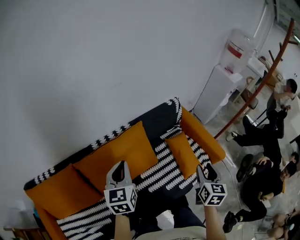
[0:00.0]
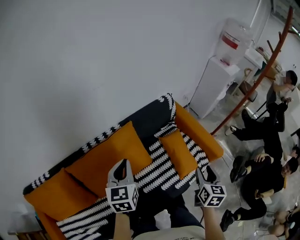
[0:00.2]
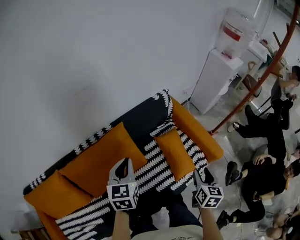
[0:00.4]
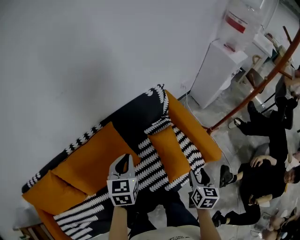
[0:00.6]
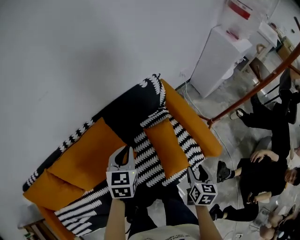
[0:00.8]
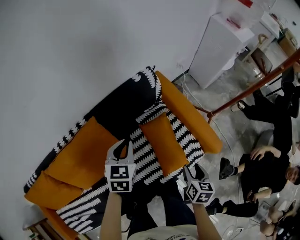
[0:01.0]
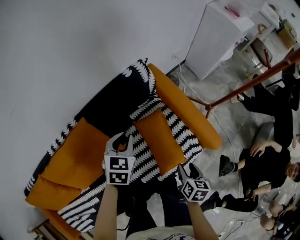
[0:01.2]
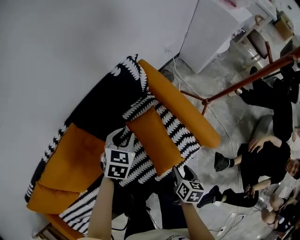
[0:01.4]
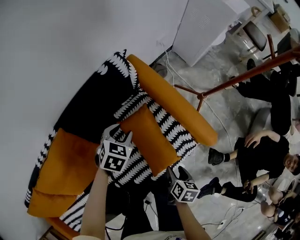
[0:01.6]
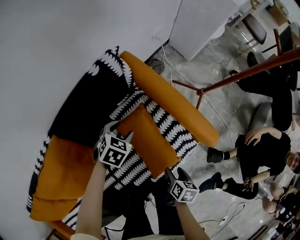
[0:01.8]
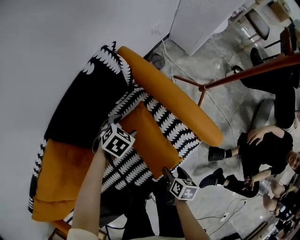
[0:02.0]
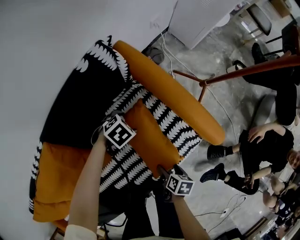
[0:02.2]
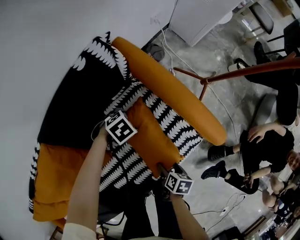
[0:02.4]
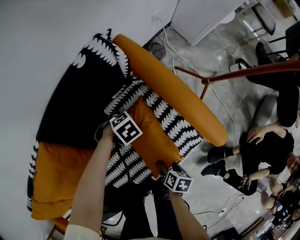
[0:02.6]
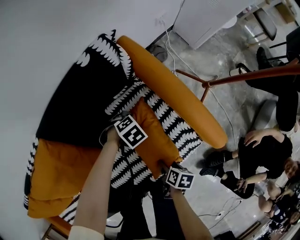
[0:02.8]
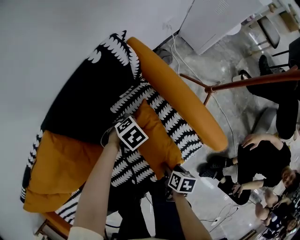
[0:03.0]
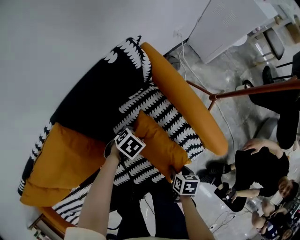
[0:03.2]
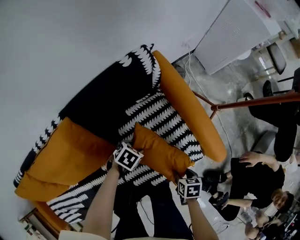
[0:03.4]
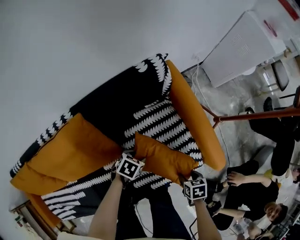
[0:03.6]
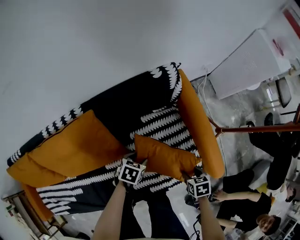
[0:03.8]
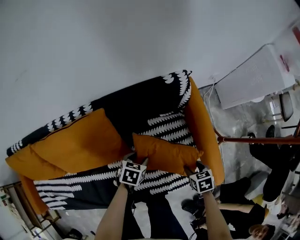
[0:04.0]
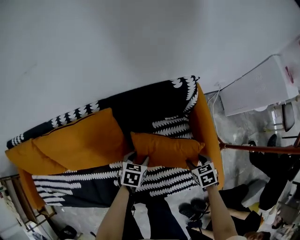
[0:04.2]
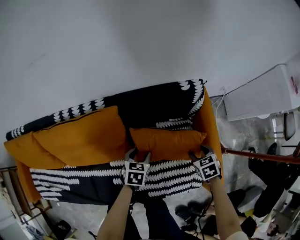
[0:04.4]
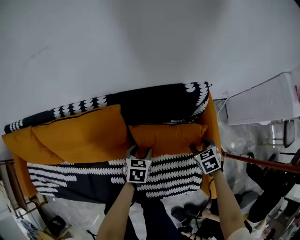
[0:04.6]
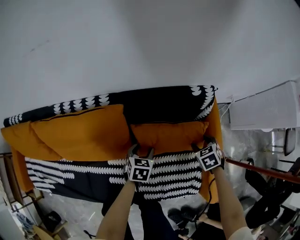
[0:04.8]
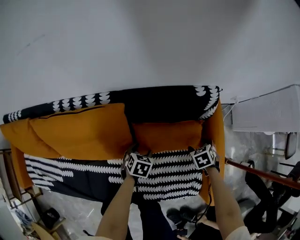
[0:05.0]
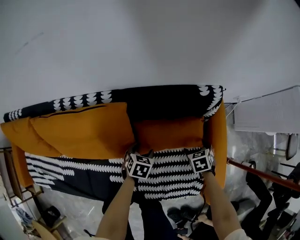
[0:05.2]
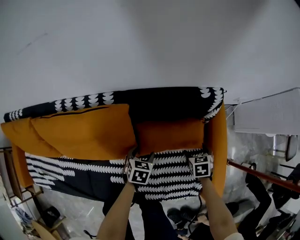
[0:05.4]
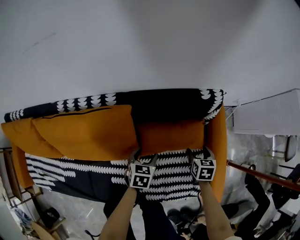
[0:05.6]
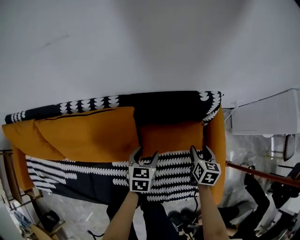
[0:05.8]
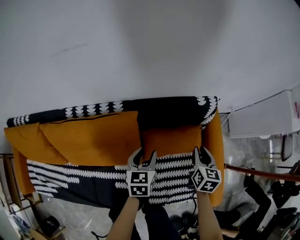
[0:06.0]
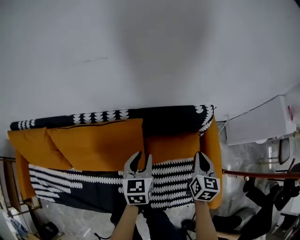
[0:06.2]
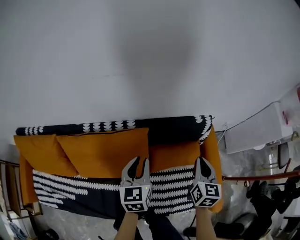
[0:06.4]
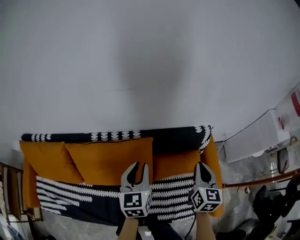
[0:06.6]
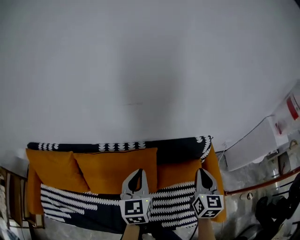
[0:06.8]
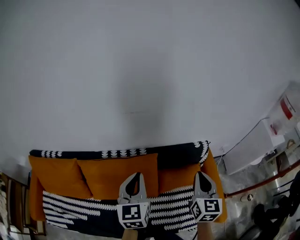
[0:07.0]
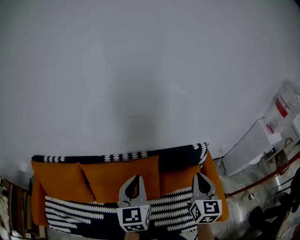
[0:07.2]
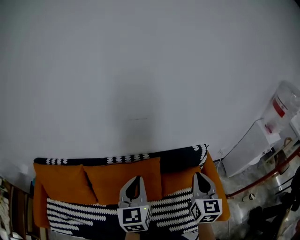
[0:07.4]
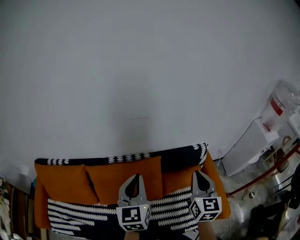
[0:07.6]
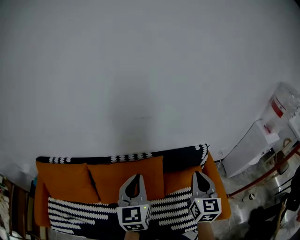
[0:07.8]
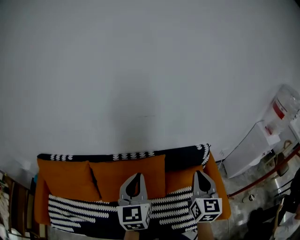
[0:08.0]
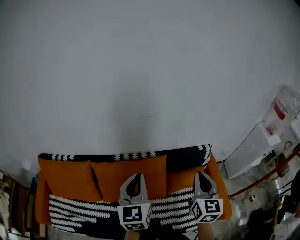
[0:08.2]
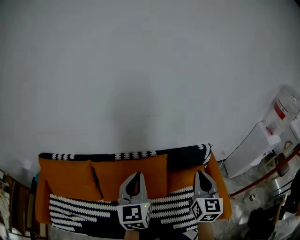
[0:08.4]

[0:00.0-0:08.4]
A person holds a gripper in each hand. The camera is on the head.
0:00.0 to 0:01.4: The right gripper moves downward and to the right, roughly 35 cm, and turns by approximately 40 degrees; the left gripper moves to the right, forward and downward, roughly 50 cm, and angles its fingers downward, by some 30 degrees.
0:01.4 to 0:02.8: The right gripper heads downward, covering some 15 cm, and swivels some 20 degrees, while the left gripper heads downward, covering approximately 25 cm, swivels approximately 50 degrees, and opens up.
0:02.8 to 0:04.2: The left gripper moves about 20 cm, and rolls counterclockwise, seen from behind, by approximately 60 degrees. The right gripper moves roughly 20 cm, and rotates around the line of its fingers by roughly 80 degrees, counterclockwise from behind.
0:04.2 to 0:05.6: The right gripper moves about 15 cm.
0:05.6 to 0:07.0: The grippers both shift upward by some 40 cm. The right gripper angles its fingers upward, by some 50 degrees, and closes up. The left gripper tilts its fingers approximately 40 degrees upward, and closes its fingers.
0:07.0 to 0:08.4: Both grippers travel together to the left, upward and backward, roughly 10 cm.

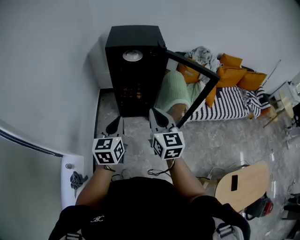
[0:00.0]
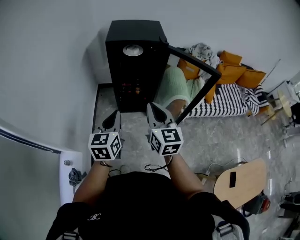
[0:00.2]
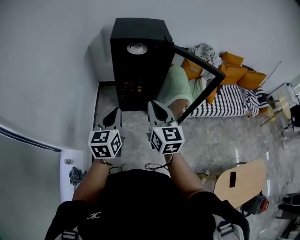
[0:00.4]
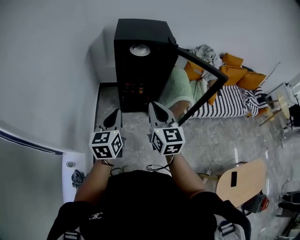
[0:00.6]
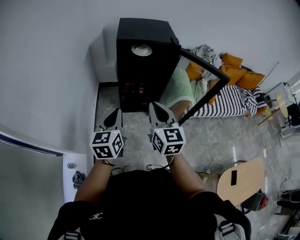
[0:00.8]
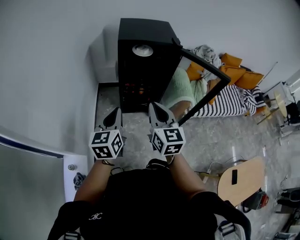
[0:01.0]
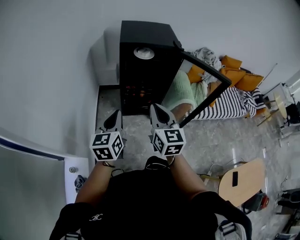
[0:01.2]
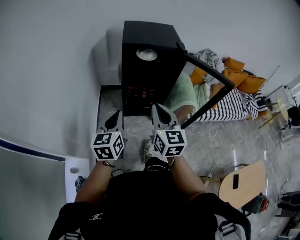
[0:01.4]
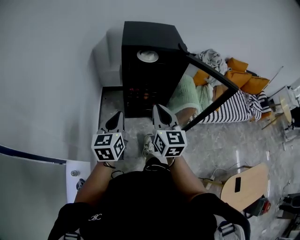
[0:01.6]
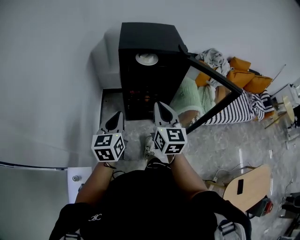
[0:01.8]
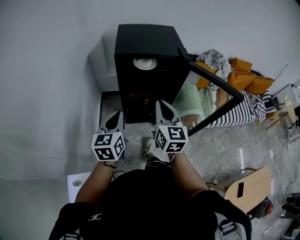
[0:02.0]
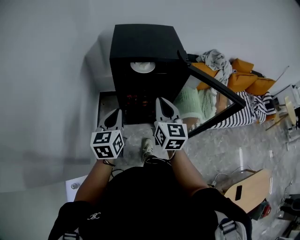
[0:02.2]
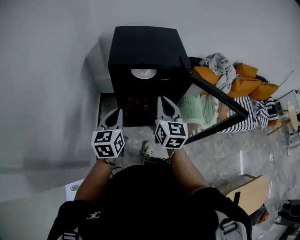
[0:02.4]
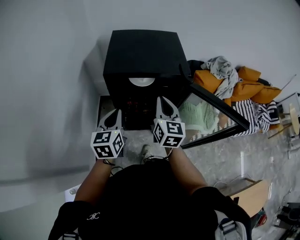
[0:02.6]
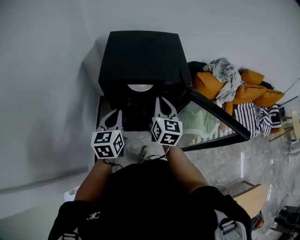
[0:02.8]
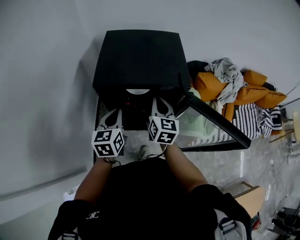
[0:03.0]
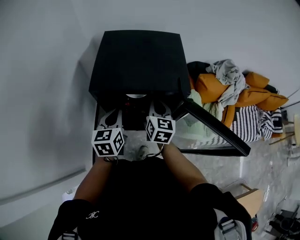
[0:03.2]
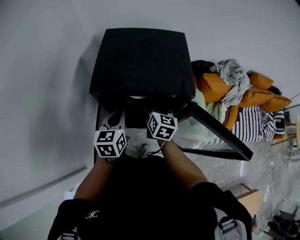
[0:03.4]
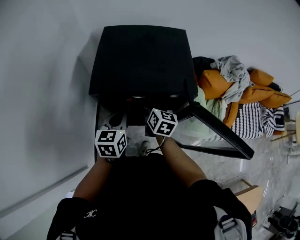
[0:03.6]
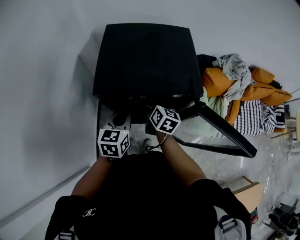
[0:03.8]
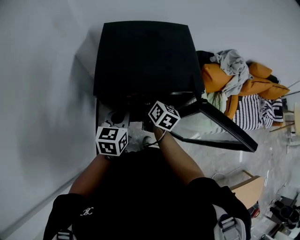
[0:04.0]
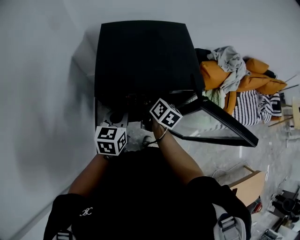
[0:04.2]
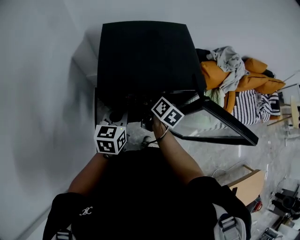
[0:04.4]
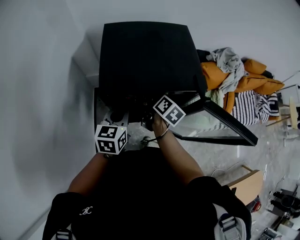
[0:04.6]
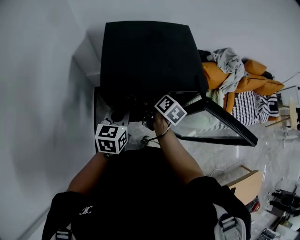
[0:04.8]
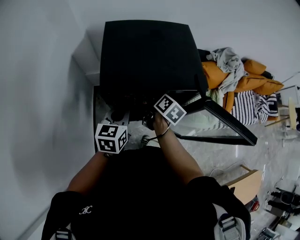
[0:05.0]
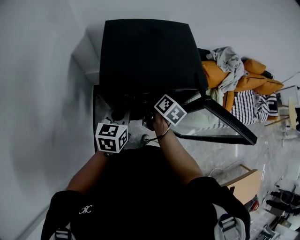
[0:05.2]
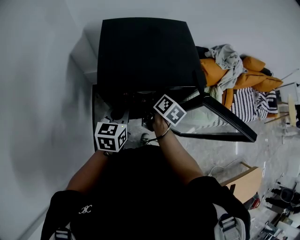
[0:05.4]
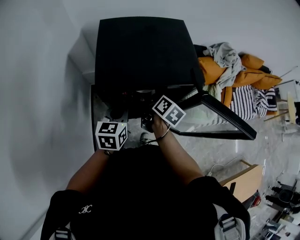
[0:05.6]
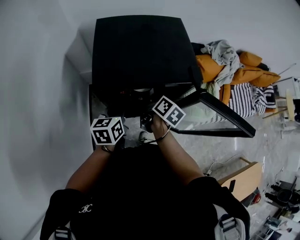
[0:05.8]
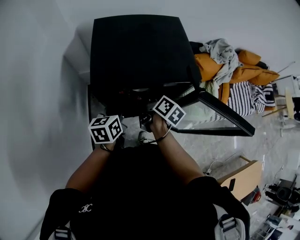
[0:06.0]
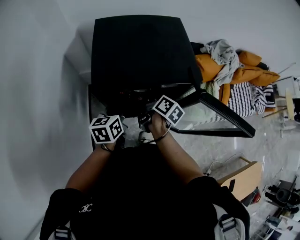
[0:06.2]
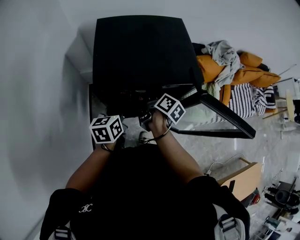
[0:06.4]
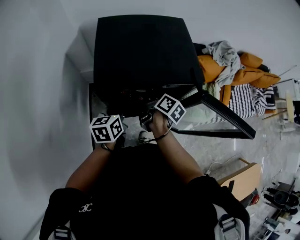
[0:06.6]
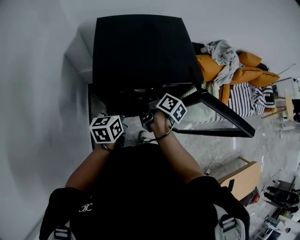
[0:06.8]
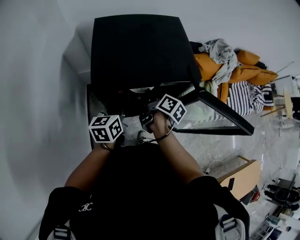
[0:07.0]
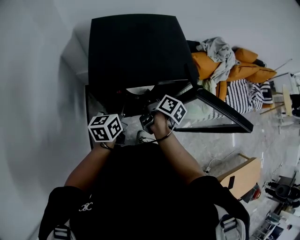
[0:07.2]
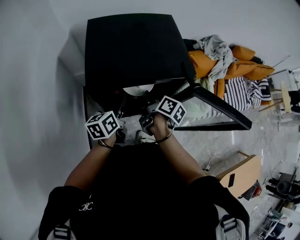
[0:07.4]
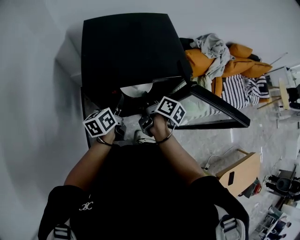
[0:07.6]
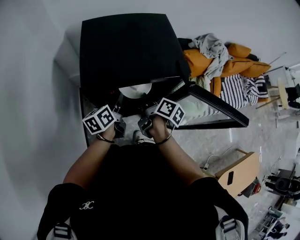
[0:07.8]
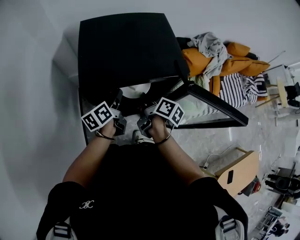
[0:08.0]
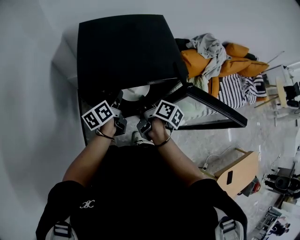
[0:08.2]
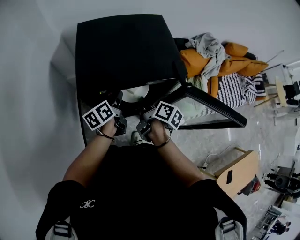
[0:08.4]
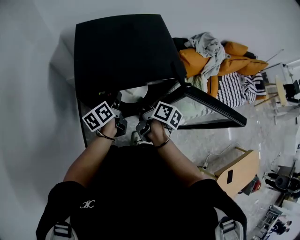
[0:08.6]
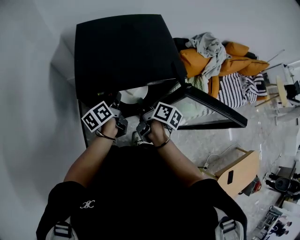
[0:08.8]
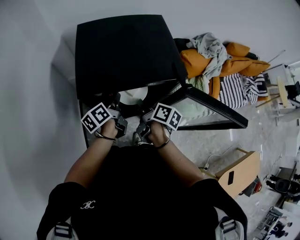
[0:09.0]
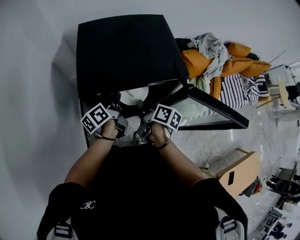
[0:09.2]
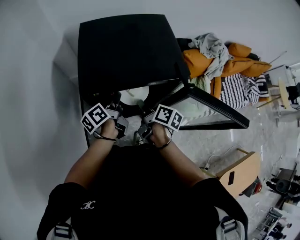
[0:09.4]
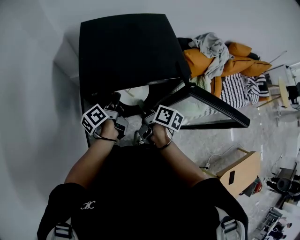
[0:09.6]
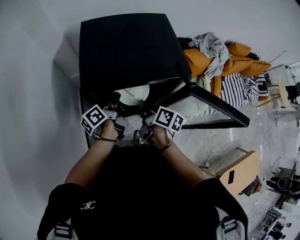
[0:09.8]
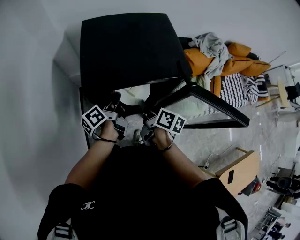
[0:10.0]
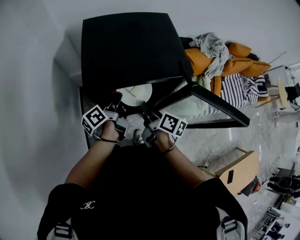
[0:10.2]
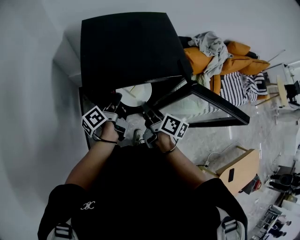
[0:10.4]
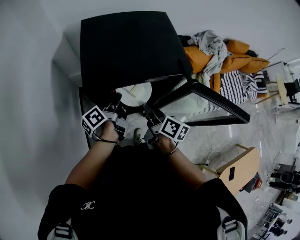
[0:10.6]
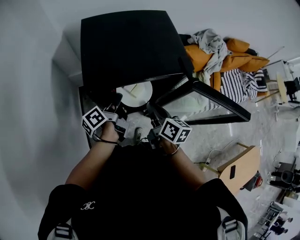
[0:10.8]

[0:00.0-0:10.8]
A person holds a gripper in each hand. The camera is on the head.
0:00.0 to 0:01.6: Both grippers travel together to the left and forward, approximately 15 cm.
0:01.6 to 0:03.0: The grippers both shift forward by approximately 35 cm.
0:03.0 to 0:04.6: The left gripper shifts by approximately 5 cm. The right gripper is displaced downward and forward by about 10 cm, rotates roughly 40 degrees, and opens.
0:04.6 to 0:06.2: The grippers move only a little.
0:06.2 to 0:07.8: The left gripper opens its fingers.
0:07.8 to 0:09.2: The left gripper closes.
0:09.2 to 0:10.8: The right gripper swivels about 20 degrees.

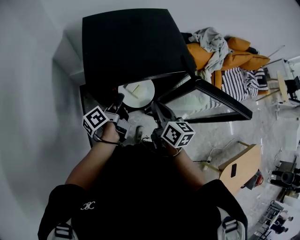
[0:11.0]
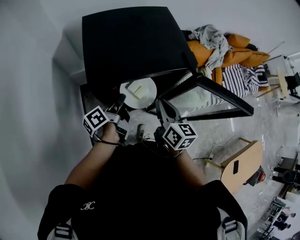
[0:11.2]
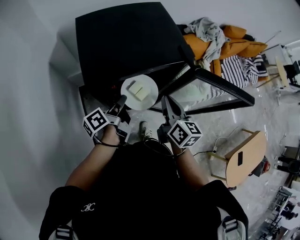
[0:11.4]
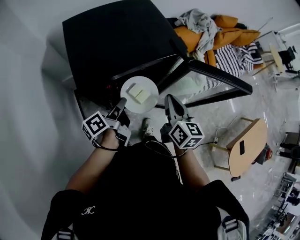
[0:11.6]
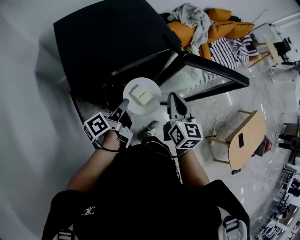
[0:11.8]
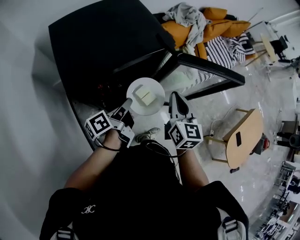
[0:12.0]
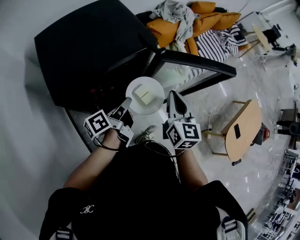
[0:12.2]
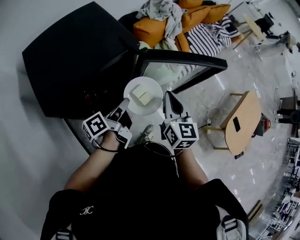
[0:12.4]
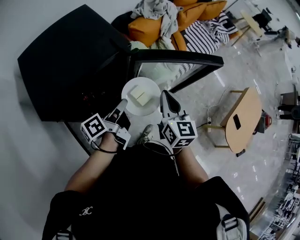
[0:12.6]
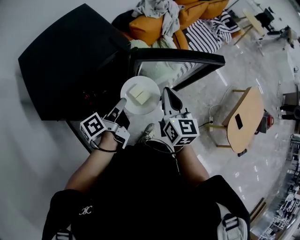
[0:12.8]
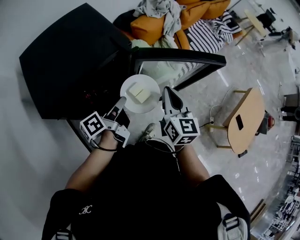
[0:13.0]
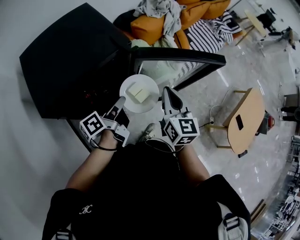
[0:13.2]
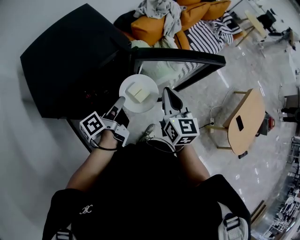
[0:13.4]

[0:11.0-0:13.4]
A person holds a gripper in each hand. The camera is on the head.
0:11.0 to 0:12.2: The left gripper changes place by roughly 15 cm, and swivels roughly 30 degrees. Meanwhile the right gripper shifts by approximately 15 cm, and turns by about 40 degrees.
0:12.2 to 0:13.4: The grippers both shift to the right by about 5 cm.

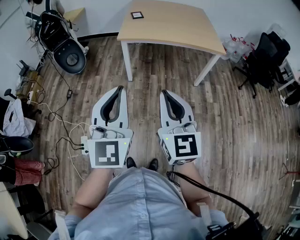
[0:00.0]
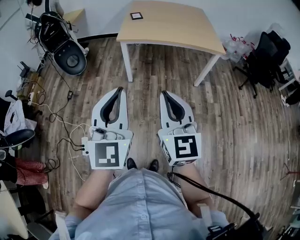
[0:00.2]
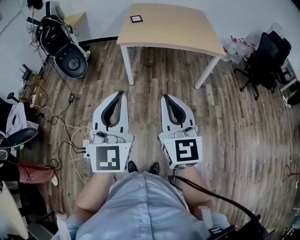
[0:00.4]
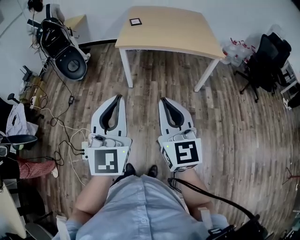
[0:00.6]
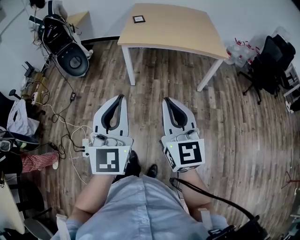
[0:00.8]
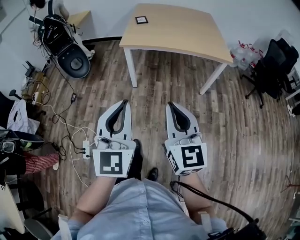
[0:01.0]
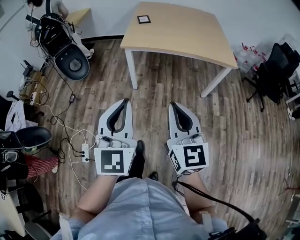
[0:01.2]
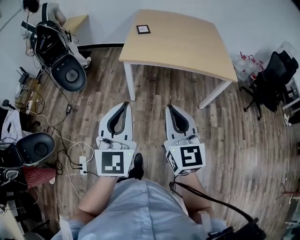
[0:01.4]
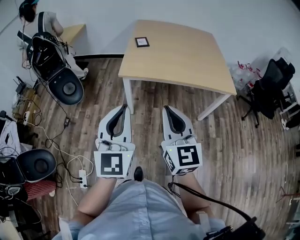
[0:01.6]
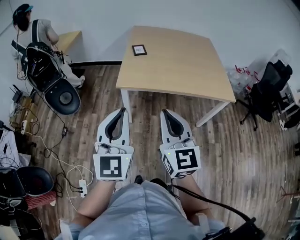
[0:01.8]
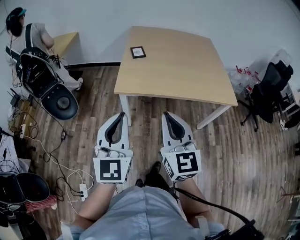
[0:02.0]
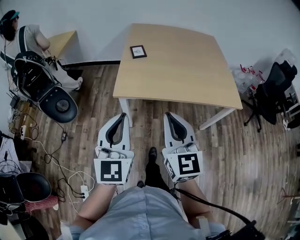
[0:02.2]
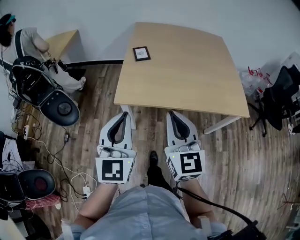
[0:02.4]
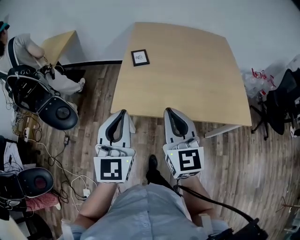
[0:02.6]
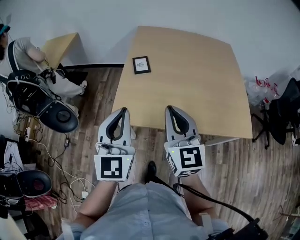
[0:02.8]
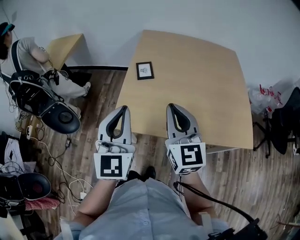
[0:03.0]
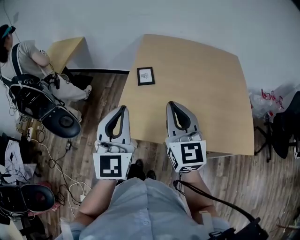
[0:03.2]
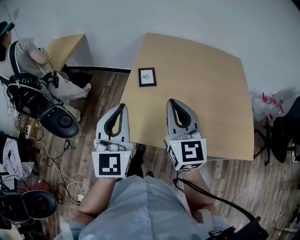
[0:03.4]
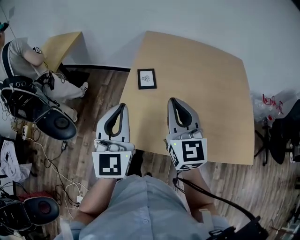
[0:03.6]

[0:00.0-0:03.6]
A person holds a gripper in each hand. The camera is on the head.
0:00.0 to 0:01.8: The grippers both shift forward by about 30 cm.
0:01.8 to 0:03.6: Both grippers travel together forward, some 40 cm.
